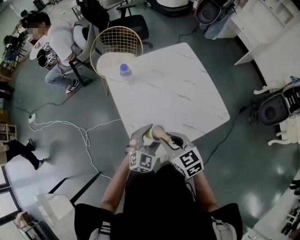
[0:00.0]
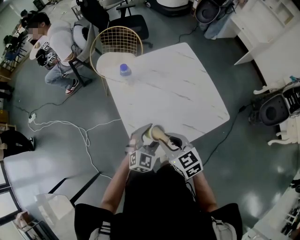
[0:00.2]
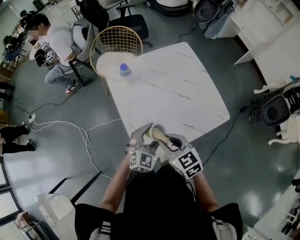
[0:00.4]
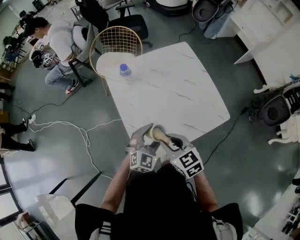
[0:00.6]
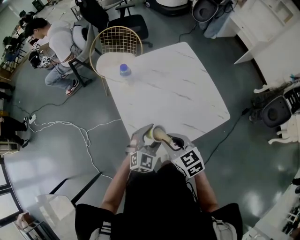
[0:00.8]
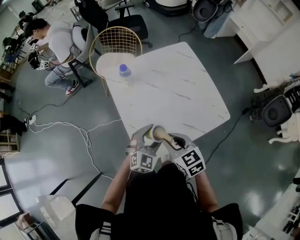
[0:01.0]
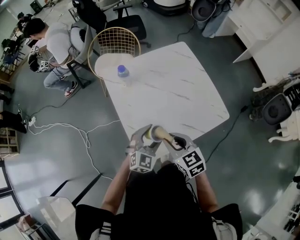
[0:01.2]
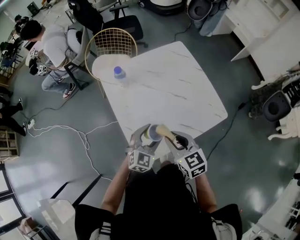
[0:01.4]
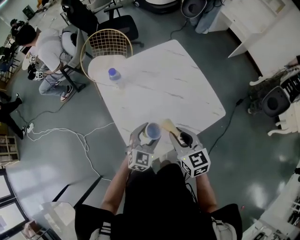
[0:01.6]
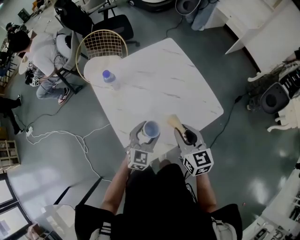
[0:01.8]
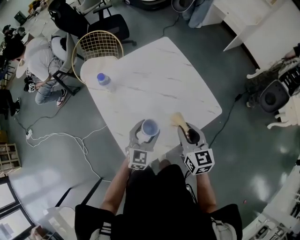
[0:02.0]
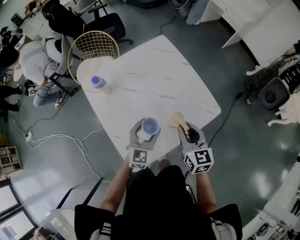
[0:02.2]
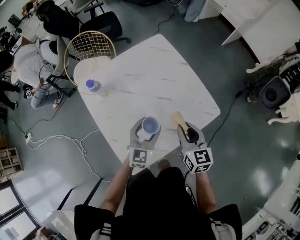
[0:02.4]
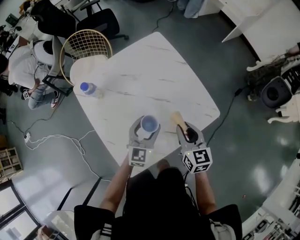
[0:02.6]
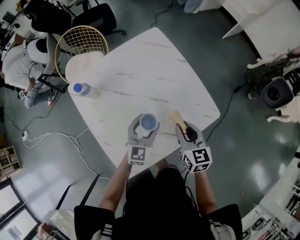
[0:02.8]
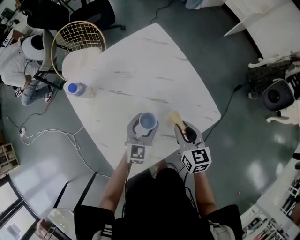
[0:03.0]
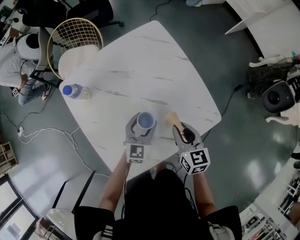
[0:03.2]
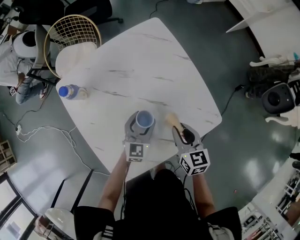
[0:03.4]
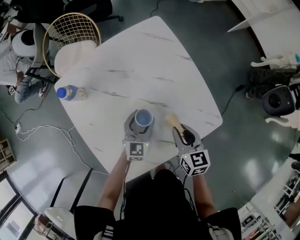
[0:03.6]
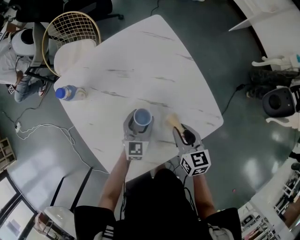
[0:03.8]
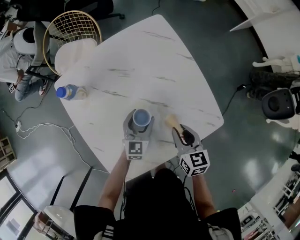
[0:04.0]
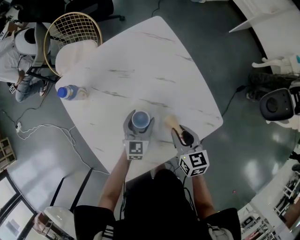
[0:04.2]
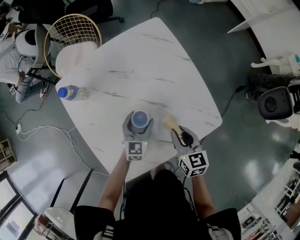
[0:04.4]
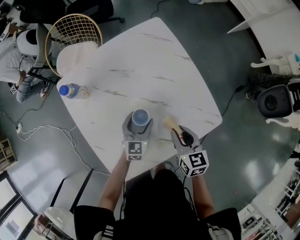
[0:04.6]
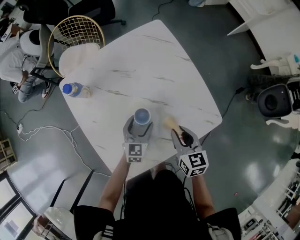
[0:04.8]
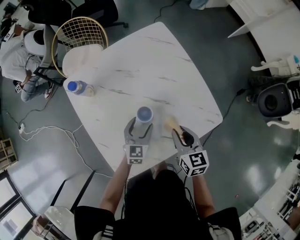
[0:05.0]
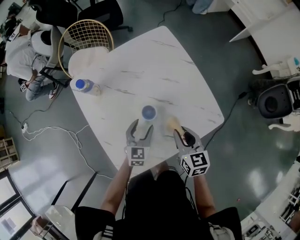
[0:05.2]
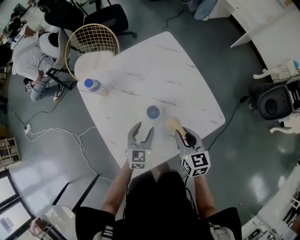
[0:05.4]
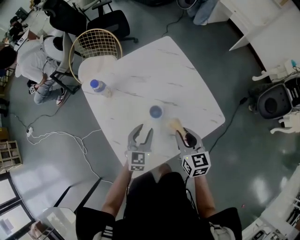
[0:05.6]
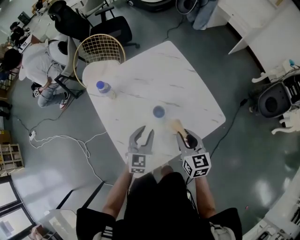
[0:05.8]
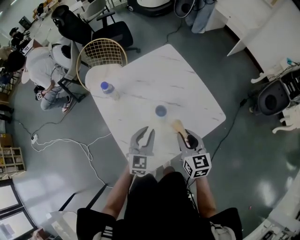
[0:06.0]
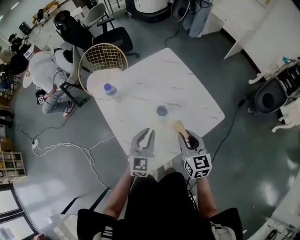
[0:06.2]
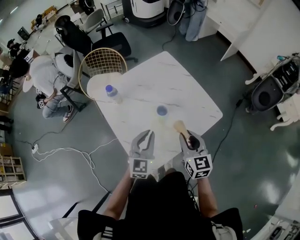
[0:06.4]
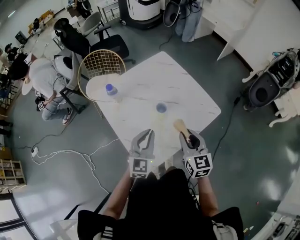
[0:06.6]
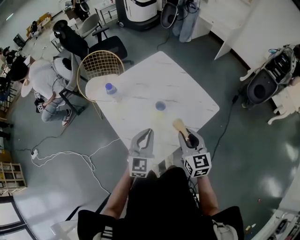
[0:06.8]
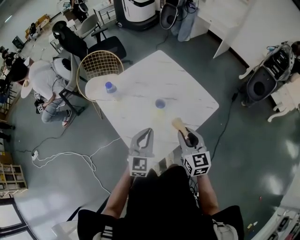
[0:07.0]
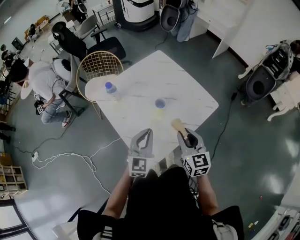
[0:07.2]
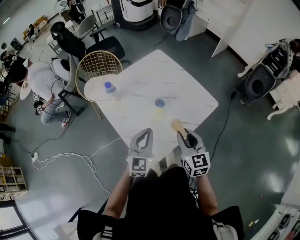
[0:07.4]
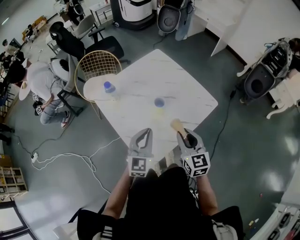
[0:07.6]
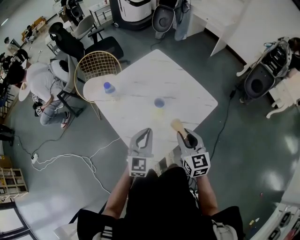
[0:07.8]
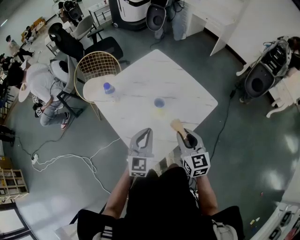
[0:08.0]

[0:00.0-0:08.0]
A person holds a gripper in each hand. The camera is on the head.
0:00.0 to 0:01.6: The right gripper heads to the right, covering about 10 cm.
0:01.6 to 0:03.2: The right gripper travels forward, to the right and downward by approximately 25 cm, while the left gripper moves forward, downward and to the right, about 20 cm.
0:03.2 to 0:04.8: The left gripper changes place by approximately 5 cm.
0:04.8 to 0:06.4: The left gripper travels upward and backward by approximately 25 cm, and closes its fingers, while the right gripper heads upward, backward and to the left, covering about 20 cm.
0:06.4 to 0:08.0: The left gripper moves about 5 cm. The right gripper heads backward, covering roughly 5 cm.

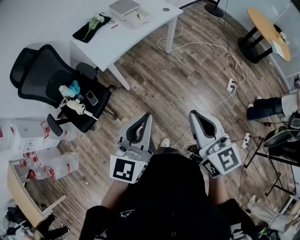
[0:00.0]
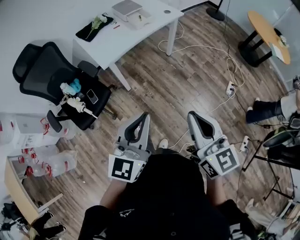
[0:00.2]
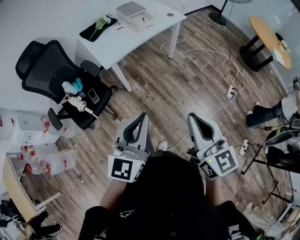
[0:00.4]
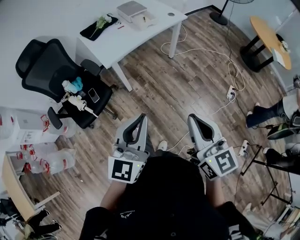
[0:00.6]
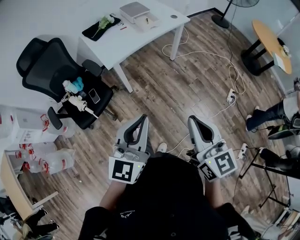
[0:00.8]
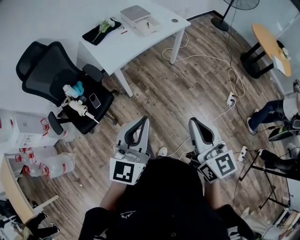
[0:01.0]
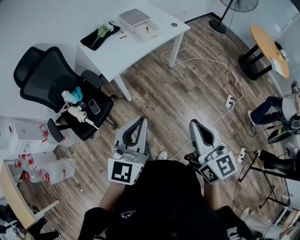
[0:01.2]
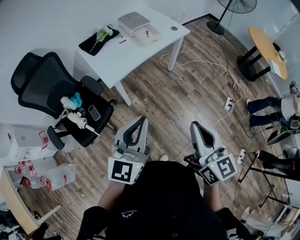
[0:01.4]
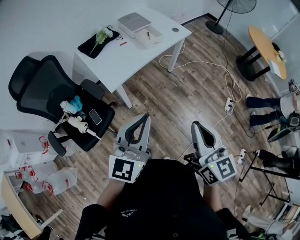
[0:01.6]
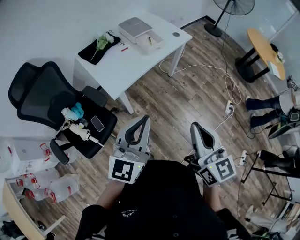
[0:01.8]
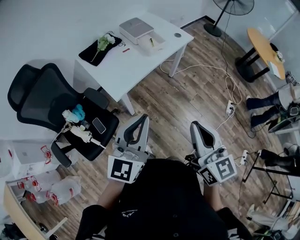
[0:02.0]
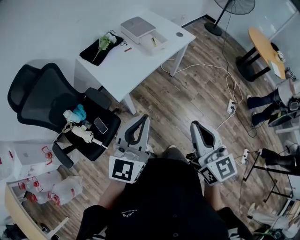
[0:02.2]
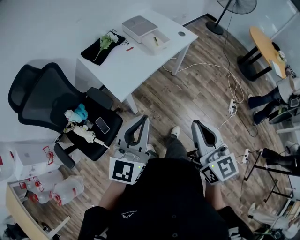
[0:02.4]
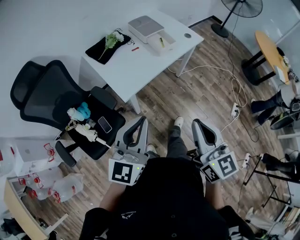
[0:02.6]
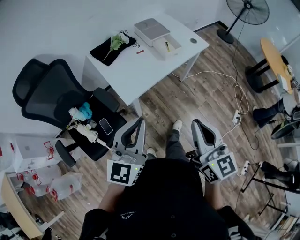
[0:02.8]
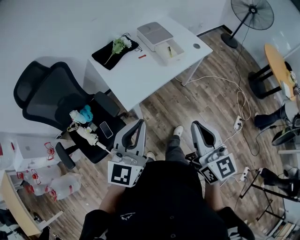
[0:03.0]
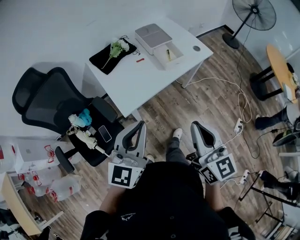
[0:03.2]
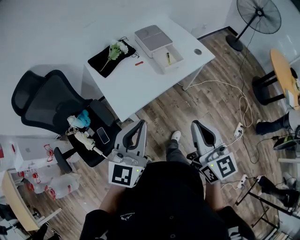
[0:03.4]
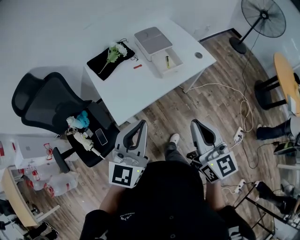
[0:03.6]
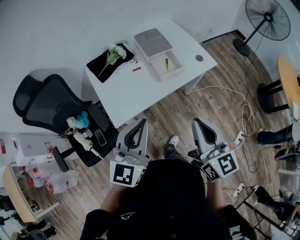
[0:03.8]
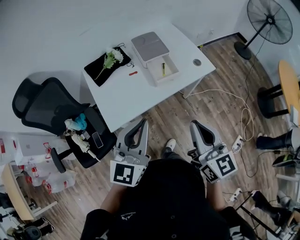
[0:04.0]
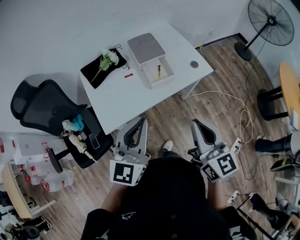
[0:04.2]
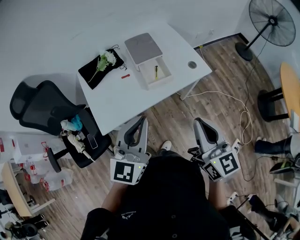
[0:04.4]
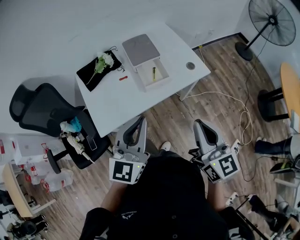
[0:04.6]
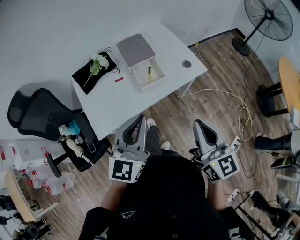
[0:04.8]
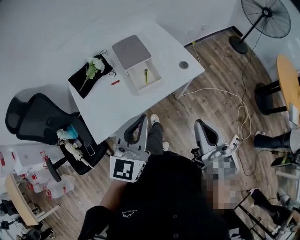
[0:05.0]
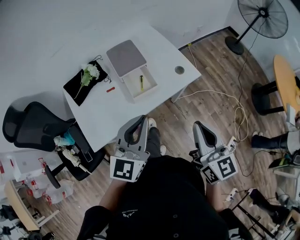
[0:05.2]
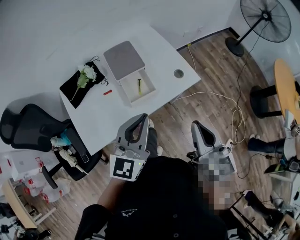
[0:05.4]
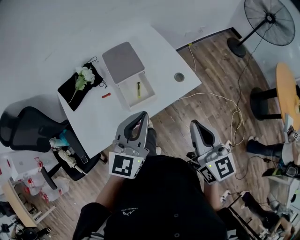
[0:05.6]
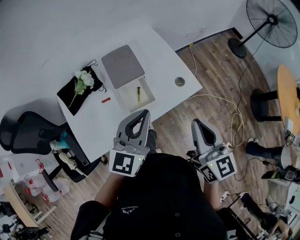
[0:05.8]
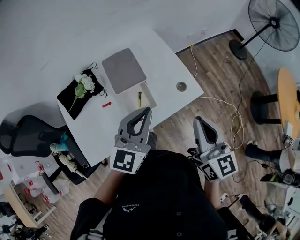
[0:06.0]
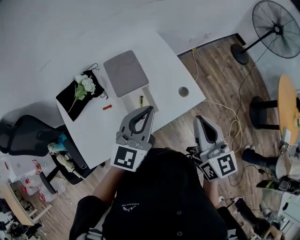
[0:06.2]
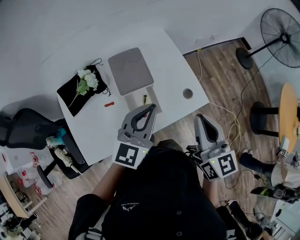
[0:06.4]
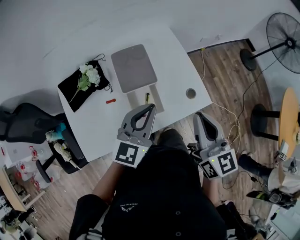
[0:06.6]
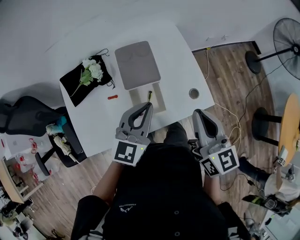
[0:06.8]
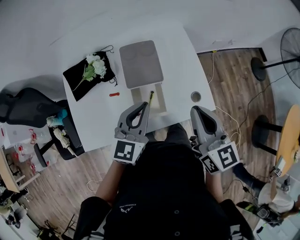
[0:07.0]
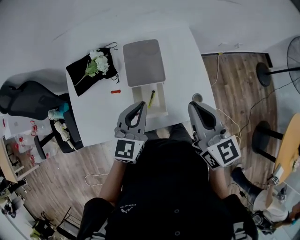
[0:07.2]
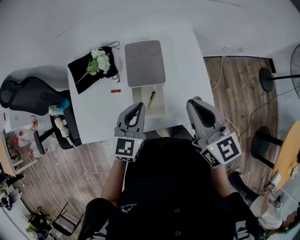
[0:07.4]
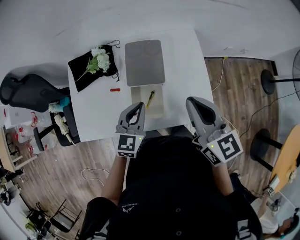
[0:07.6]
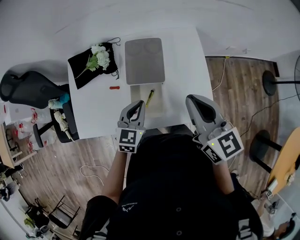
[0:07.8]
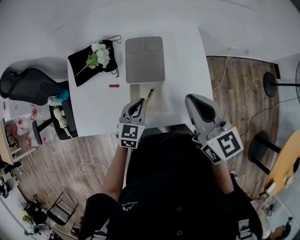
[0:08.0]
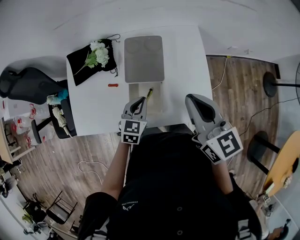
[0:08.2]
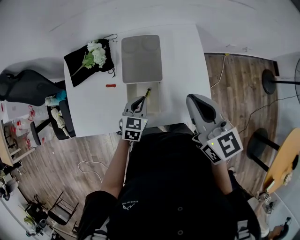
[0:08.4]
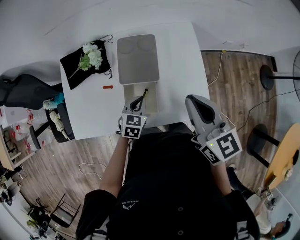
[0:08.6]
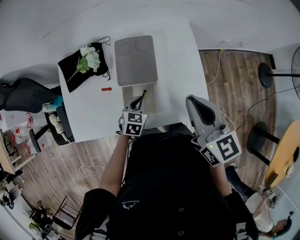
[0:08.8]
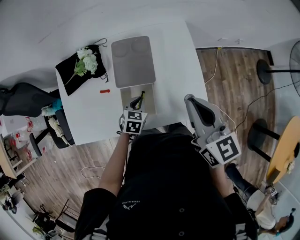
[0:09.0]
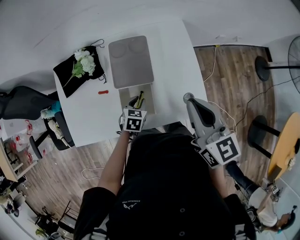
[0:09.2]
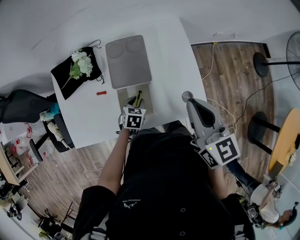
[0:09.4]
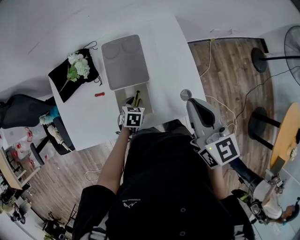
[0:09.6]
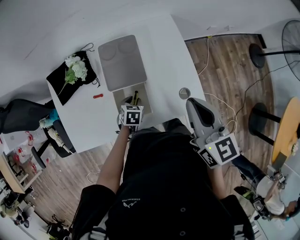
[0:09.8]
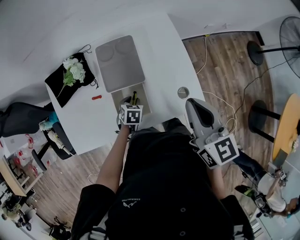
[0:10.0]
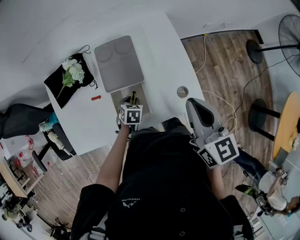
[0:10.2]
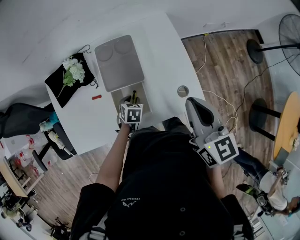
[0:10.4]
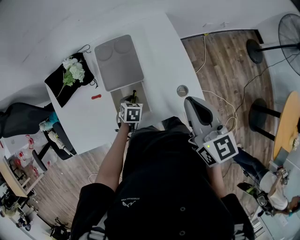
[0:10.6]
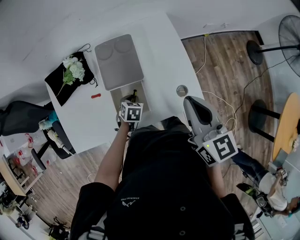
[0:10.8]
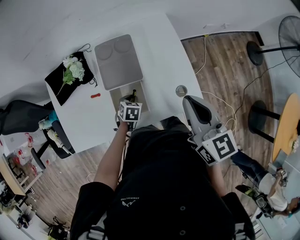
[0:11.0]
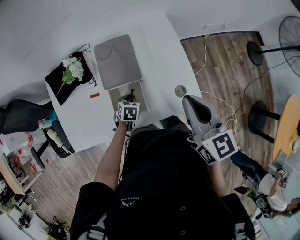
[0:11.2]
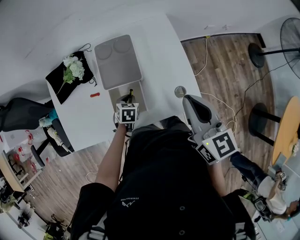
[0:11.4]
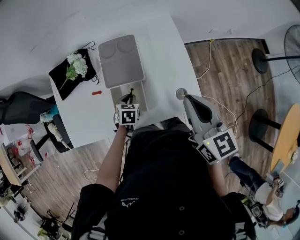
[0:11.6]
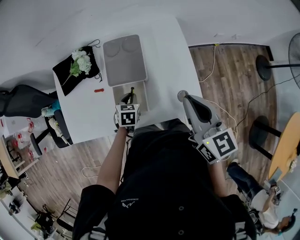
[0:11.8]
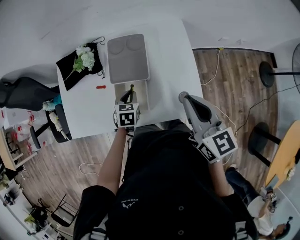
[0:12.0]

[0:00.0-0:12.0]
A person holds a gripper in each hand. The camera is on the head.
0:00.0 to 0:01.6: The two grippers go some 15 cm forward and to the left.
0:01.6 to 0:03.0: The two grippers go roughly 15 cm forward and to the left.
0:03.0 to 0:04.4: Both grippers move to the right and forward, roughly 30 cm.
0:04.4 to 0:06.0: Both grippers travel together forward, about 25 cm.
0:06.0 to 0:07.6: The right gripper moves approximately 20 cm, and changes its angle by some 30 degrees. The left gripper goes roughly 15 cm downward, and rotates approximately 30 degrees.
0:07.6 to 0:09.0: The left gripper shifts about 20 cm downward, and turns by some 30 degrees.
0:09.0 to 0:10.4: The left gripper shifts about 5 cm downward, and opens up.
0:10.4 to 0:12.0: The left gripper travels upward by some 10 cm.

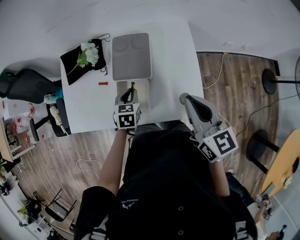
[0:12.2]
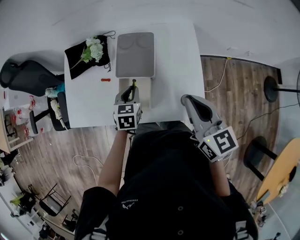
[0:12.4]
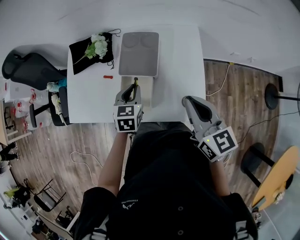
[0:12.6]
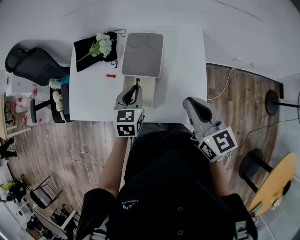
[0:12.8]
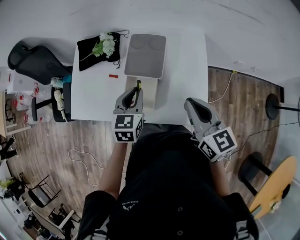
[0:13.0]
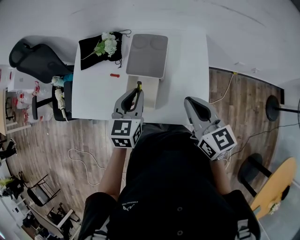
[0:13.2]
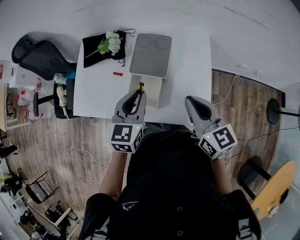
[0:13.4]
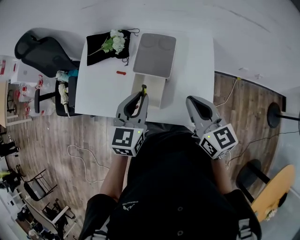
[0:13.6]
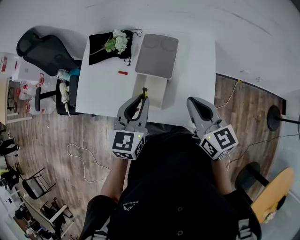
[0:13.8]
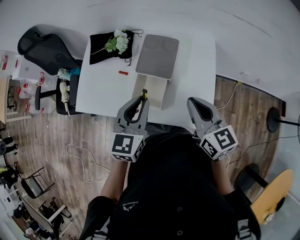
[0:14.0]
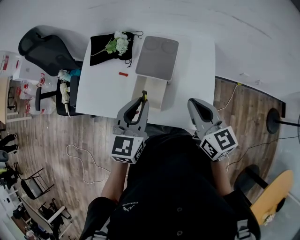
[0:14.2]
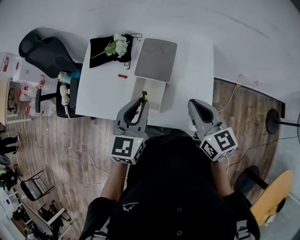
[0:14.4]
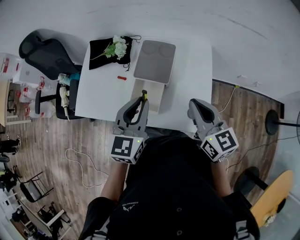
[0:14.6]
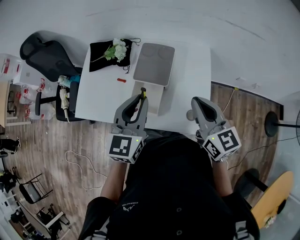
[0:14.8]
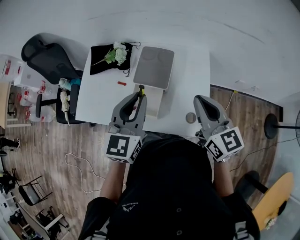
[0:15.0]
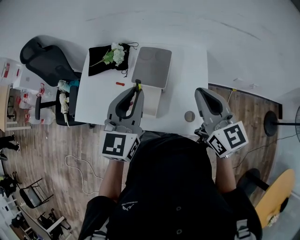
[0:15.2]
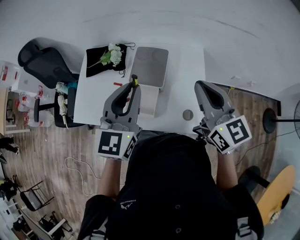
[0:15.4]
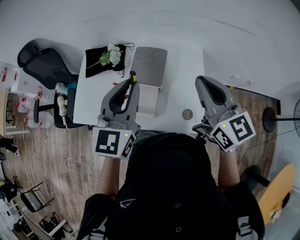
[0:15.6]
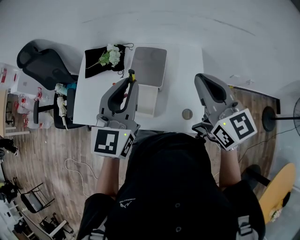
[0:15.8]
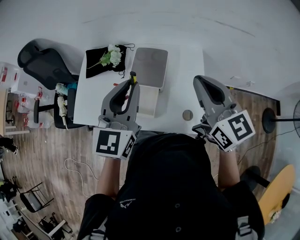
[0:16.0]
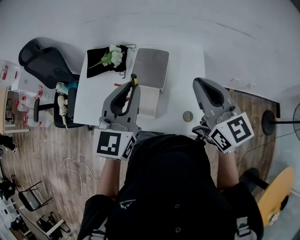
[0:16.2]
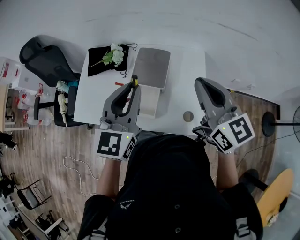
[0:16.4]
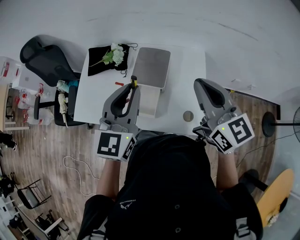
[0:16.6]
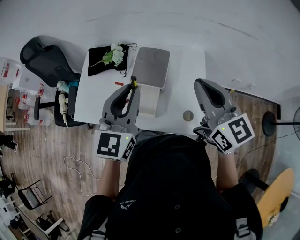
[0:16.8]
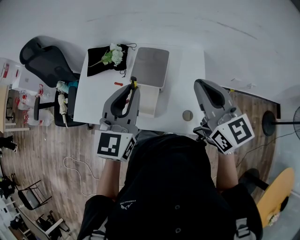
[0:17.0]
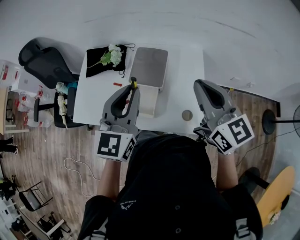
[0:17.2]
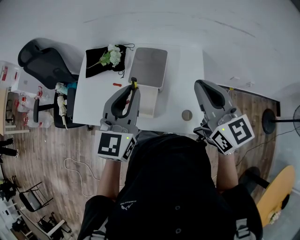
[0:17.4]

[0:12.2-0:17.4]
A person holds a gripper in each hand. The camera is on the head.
0:12.2 to 0:14.0: The left gripper shifts roughly 20 cm upward and backward, and tips its fingers upward by roughly 30 degrees.
0:14.0 to 0:15.6: Both grippers move upward, some 15 cm.
0:15.6 to 0:17.4: The grippers make only small movements.
